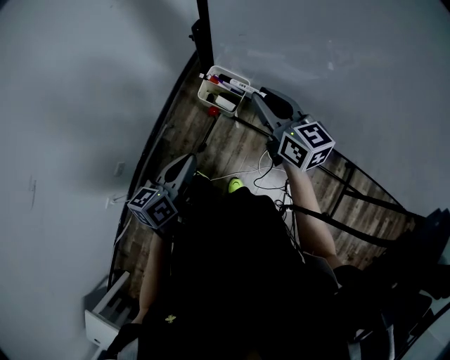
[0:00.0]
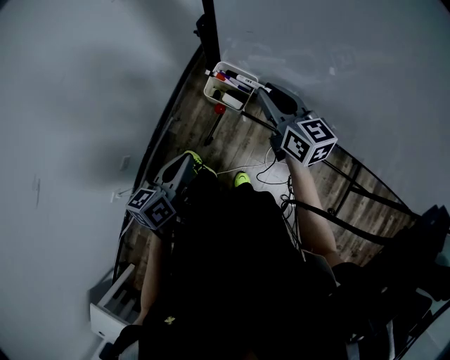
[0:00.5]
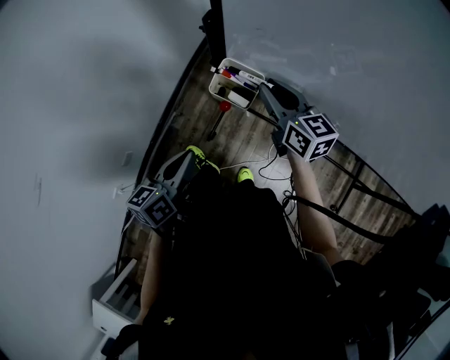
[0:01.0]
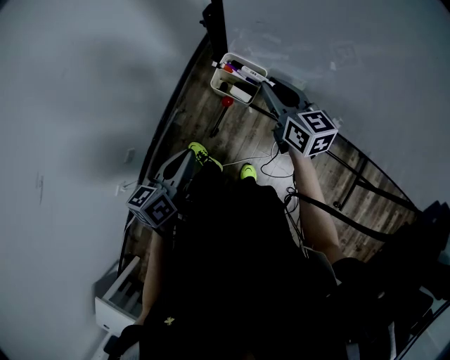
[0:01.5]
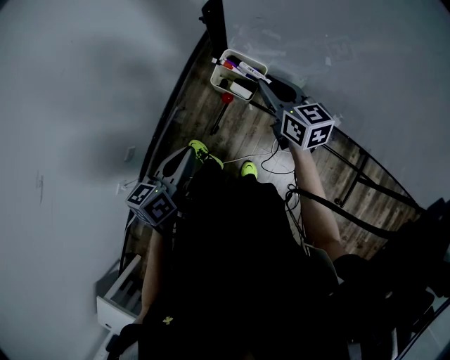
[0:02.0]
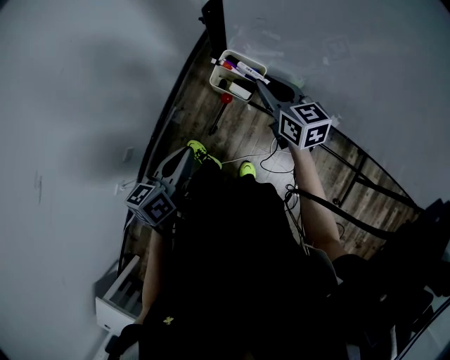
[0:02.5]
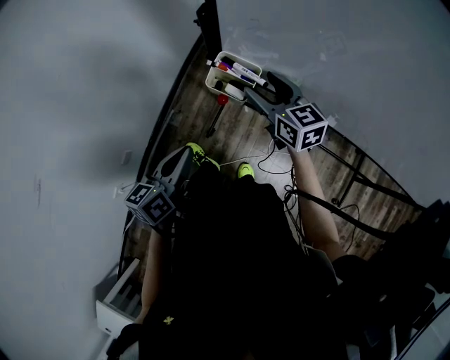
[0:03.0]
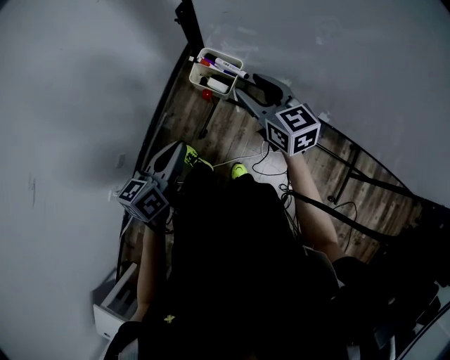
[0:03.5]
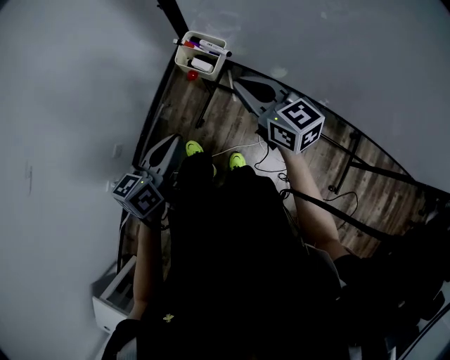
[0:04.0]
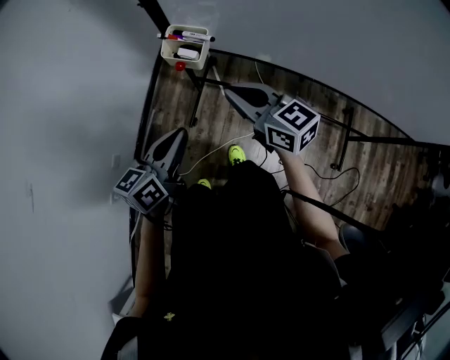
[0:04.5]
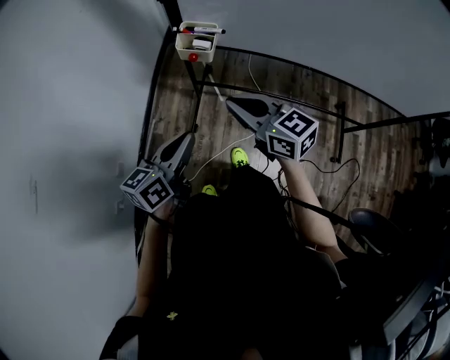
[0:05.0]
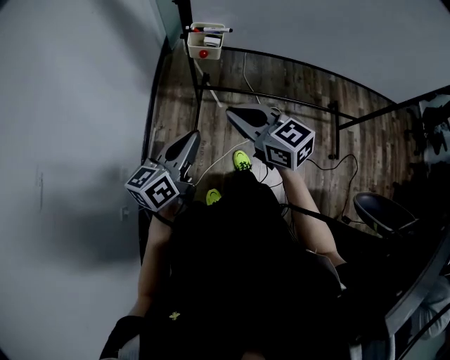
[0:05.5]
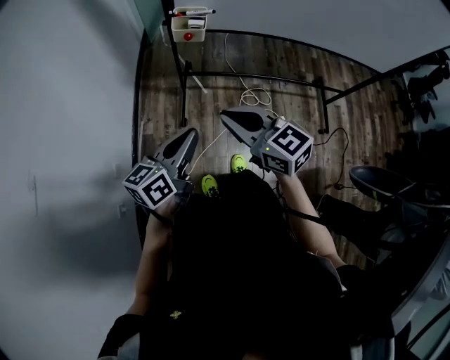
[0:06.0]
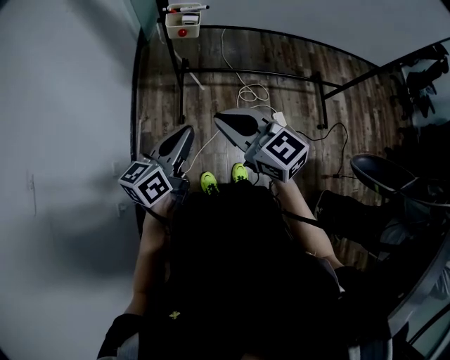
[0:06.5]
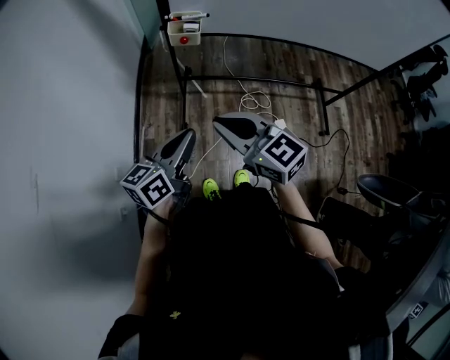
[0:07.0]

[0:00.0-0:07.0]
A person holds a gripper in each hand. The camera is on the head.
0:00.0 to 0:02.0: The right gripper moves downward, roughly 10 cm.
0:02.0 to 0:03.5: The right gripper ends up about 5 cm from where it was, and opens up.
0:03.5 to 0:05.0: The right gripper shifts about 20 cm backward, and closes; the left gripper shifts approximately 10 cm backward.
0:05.0 to 0:07.0: The left gripper travels backward by approximately 10 cm, while the right gripper goes some 20 cm backward and to the left.

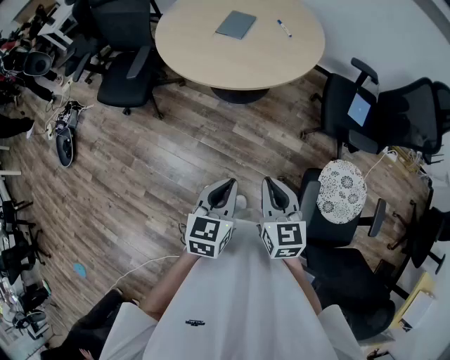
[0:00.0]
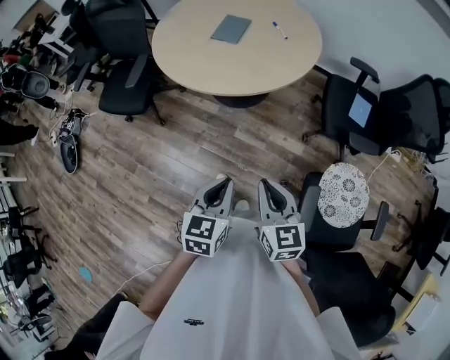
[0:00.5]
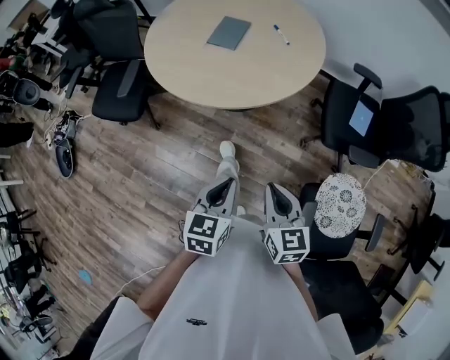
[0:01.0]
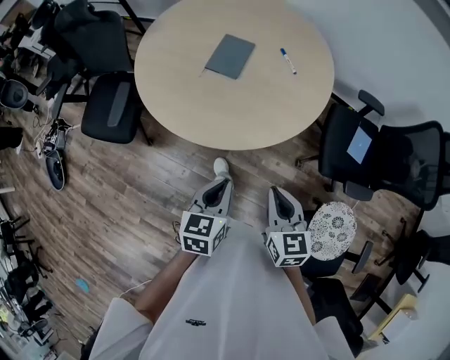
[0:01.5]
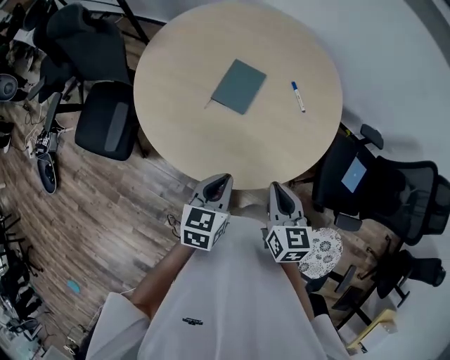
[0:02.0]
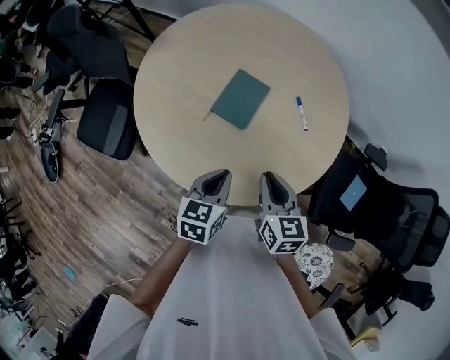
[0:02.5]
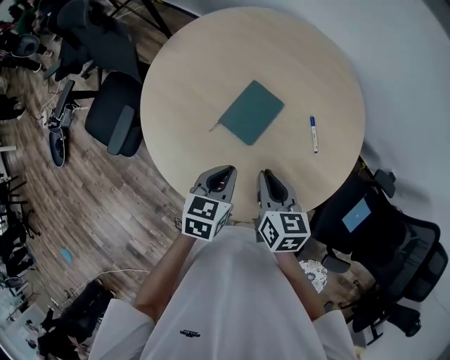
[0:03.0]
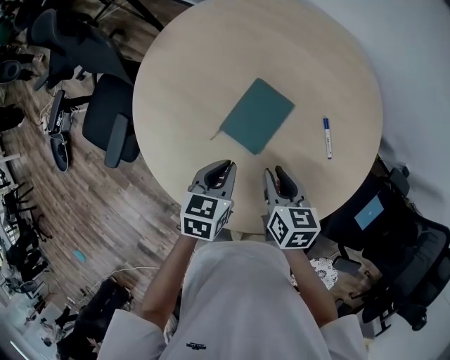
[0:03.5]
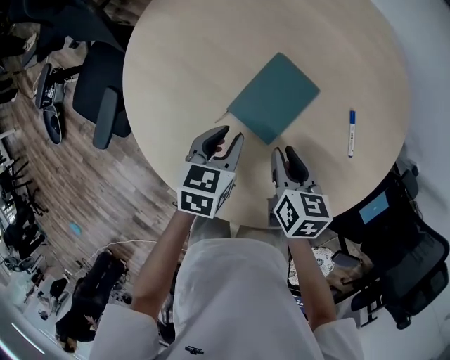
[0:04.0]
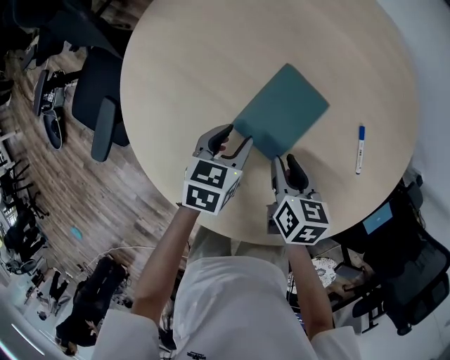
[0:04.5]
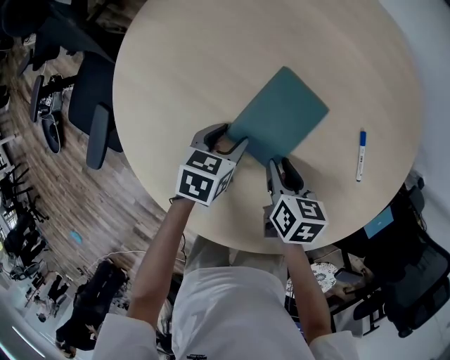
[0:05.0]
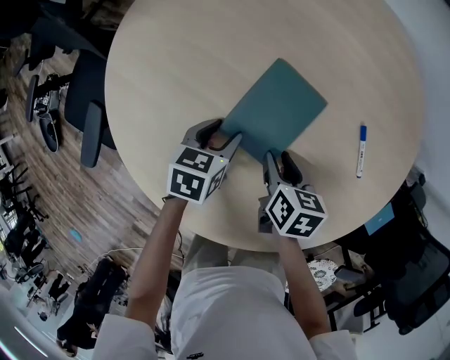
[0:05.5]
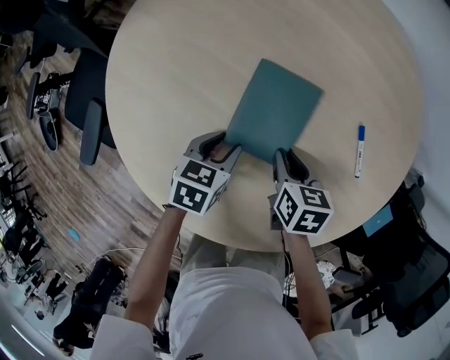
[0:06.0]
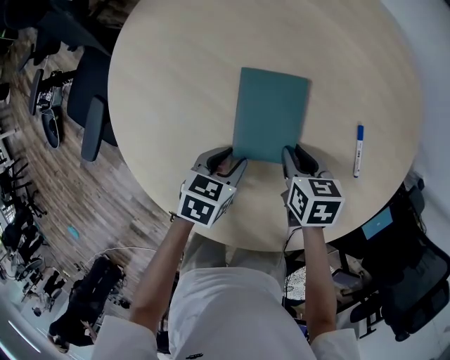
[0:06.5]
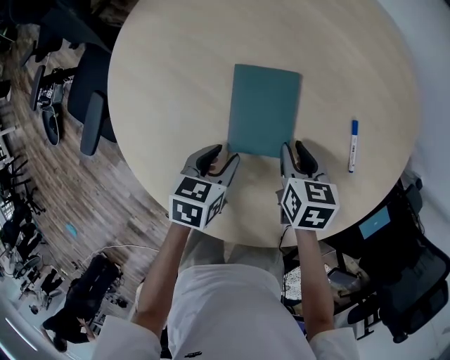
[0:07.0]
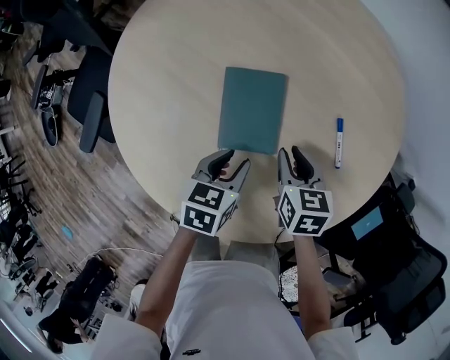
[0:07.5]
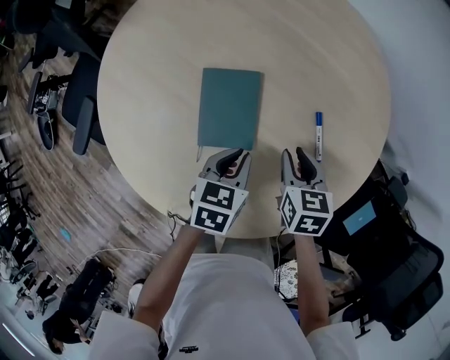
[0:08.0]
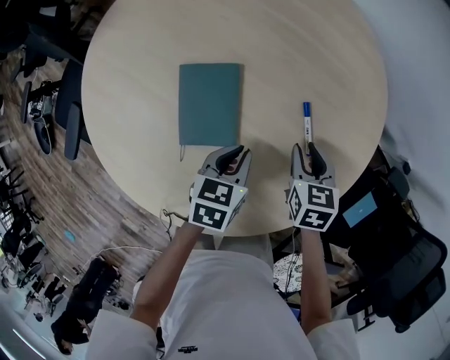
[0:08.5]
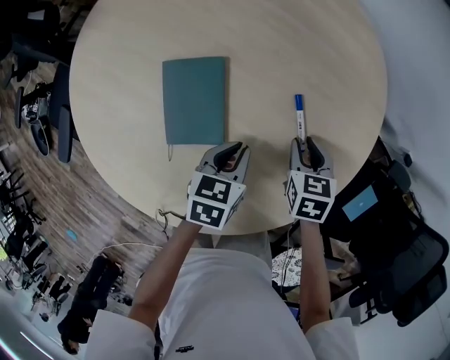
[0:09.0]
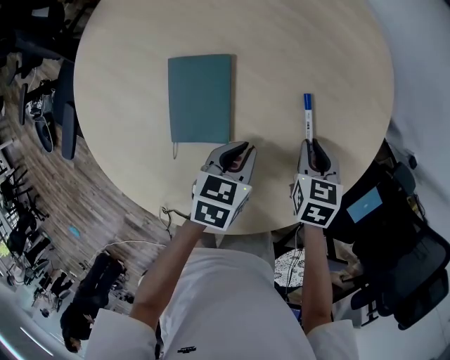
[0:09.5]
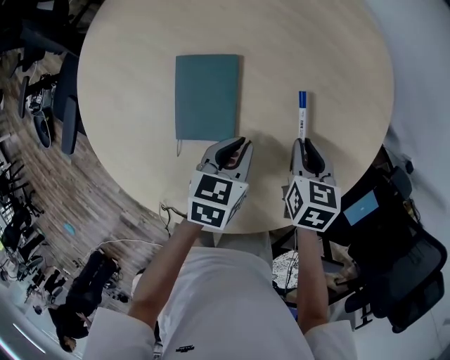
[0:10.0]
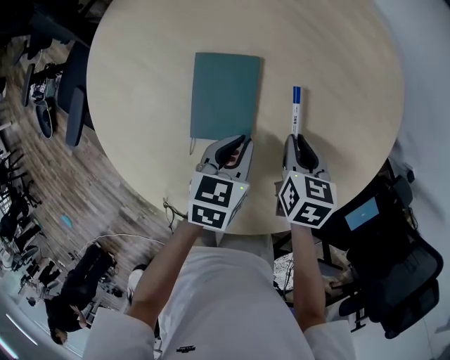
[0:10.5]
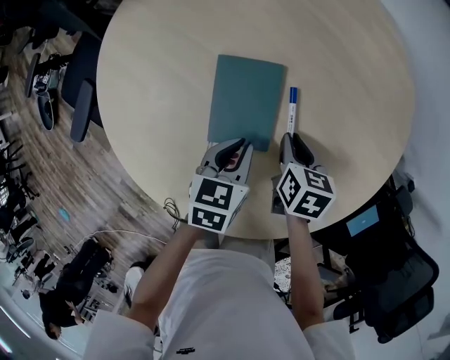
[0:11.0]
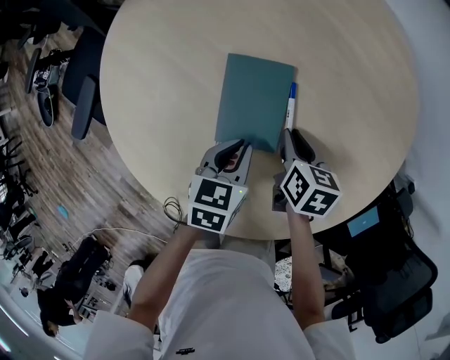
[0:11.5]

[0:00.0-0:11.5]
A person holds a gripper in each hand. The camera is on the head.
0:00.0 to 0:02.0: The pair of grippers is taken forward, approximately 50 cm.
0:02.0 to 0:04.0: The grippers both shift forward and downward by roughly 35 cm. The left gripper opens, while the right gripper turns by some 20 degrees.
0:04.0 to 0:06.0: The grippers both shift downward by about 10 cm.
0:06.0 to 0:07.5: The right gripper shifts approximately 10 cm upward and to the right; the left gripper is displaced to the right and upward by approximately 10 cm.
0:07.5 to 0:09.5: The grippers both shift to the right by approximately 15 cm. The left gripper closes.
0:09.5 to 0:11.5: The grippers both shift to the left by about 15 cm. The right gripper rotates about 20 degrees.

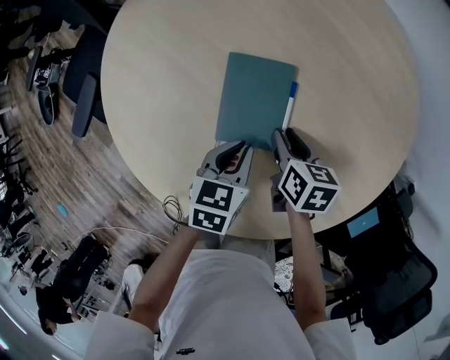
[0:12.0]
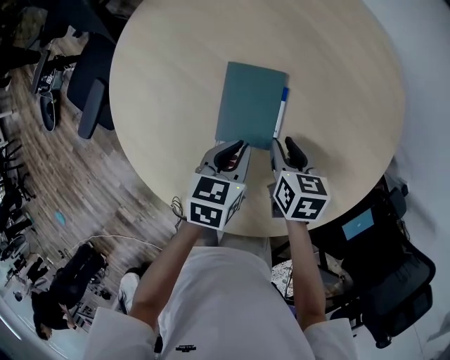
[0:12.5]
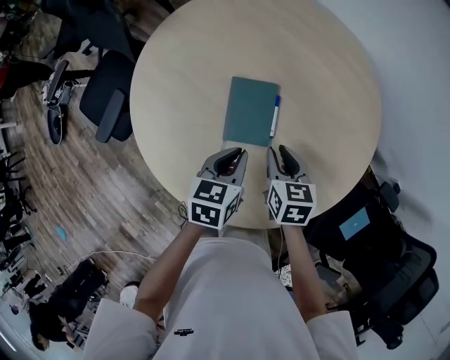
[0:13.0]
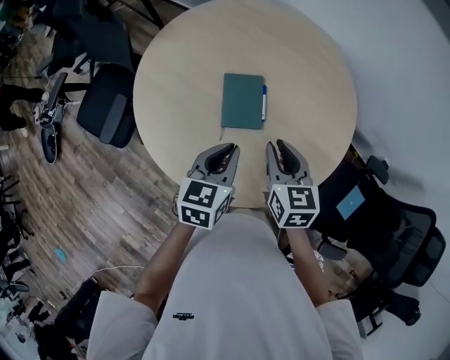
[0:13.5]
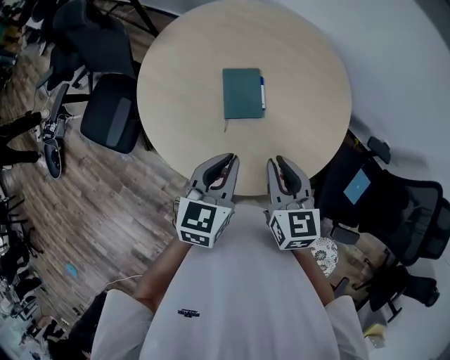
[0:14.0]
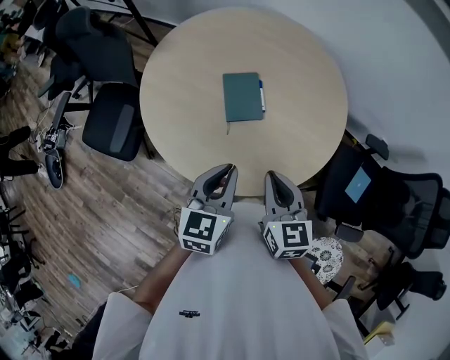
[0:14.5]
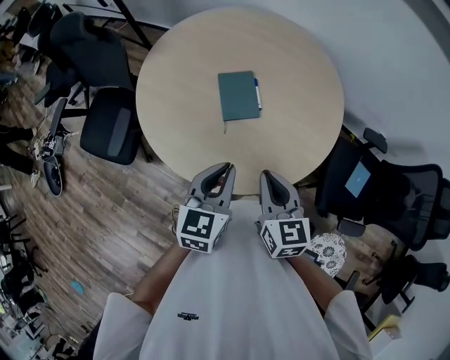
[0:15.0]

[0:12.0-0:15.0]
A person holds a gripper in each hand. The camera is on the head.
0:12.0 to 0:13.5: The two grippers go roughly 30 cm upward and backward. The right gripper turns by some 30 degrees.
0:13.5 to 0:15.0: The right gripper goes roughly 15 cm backward, while the left gripper shifts roughly 15 cm backward and upward.

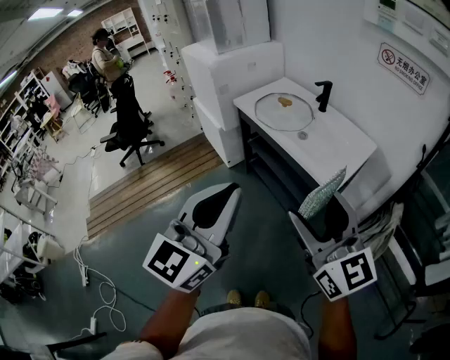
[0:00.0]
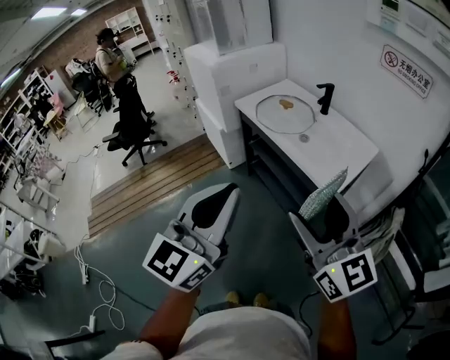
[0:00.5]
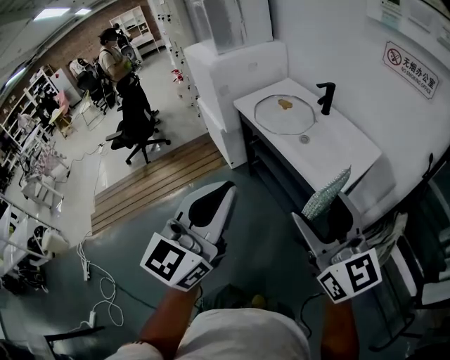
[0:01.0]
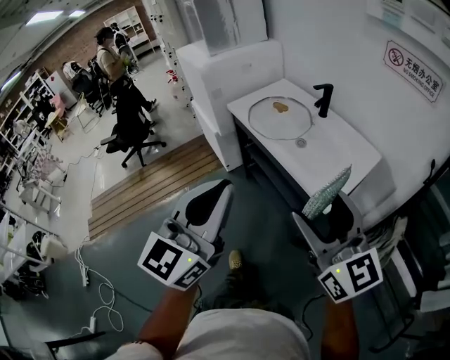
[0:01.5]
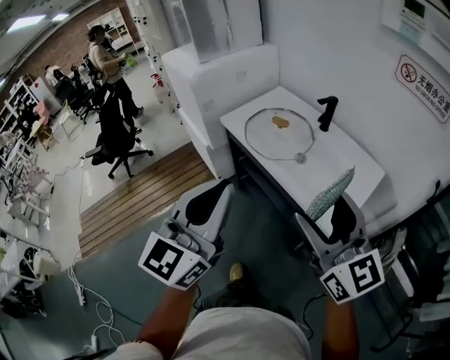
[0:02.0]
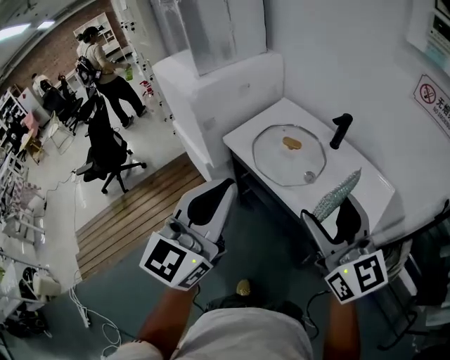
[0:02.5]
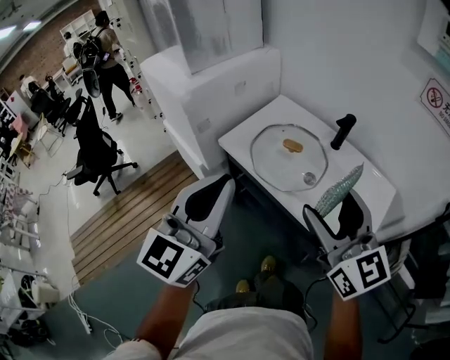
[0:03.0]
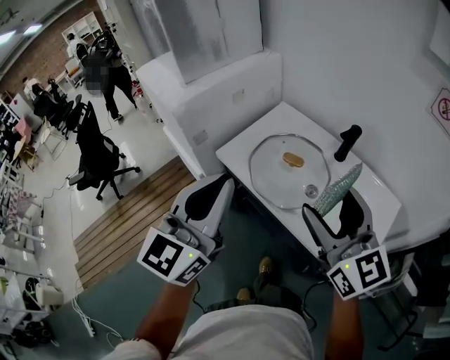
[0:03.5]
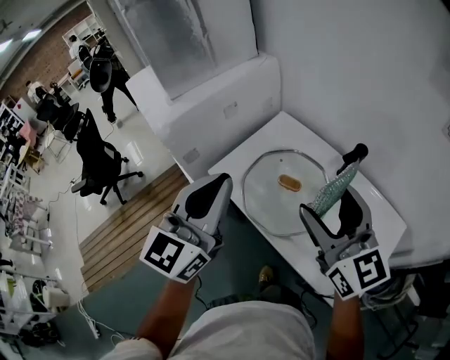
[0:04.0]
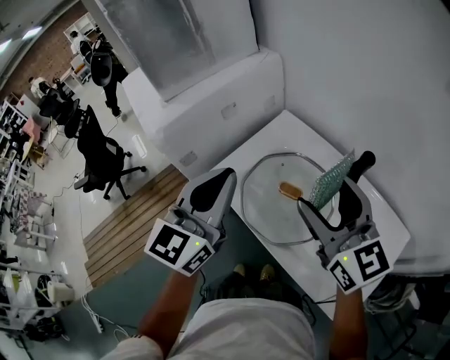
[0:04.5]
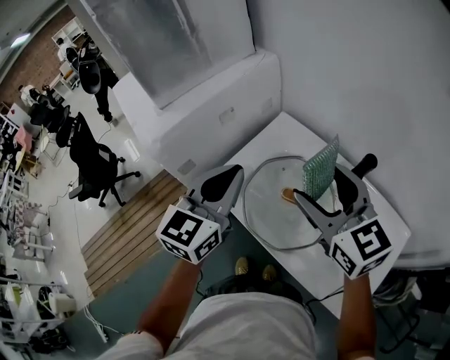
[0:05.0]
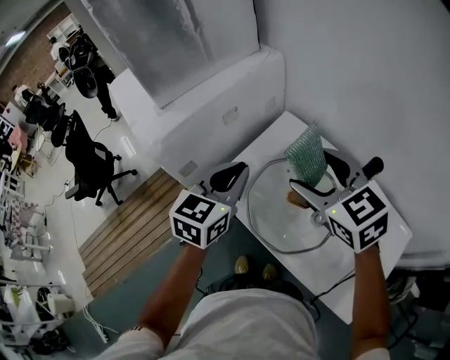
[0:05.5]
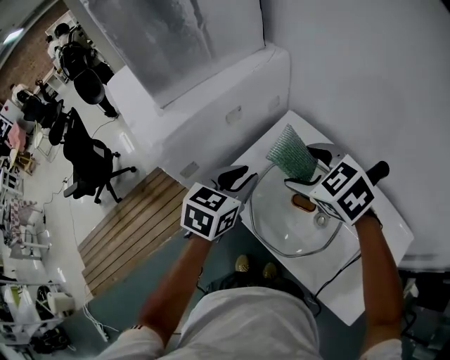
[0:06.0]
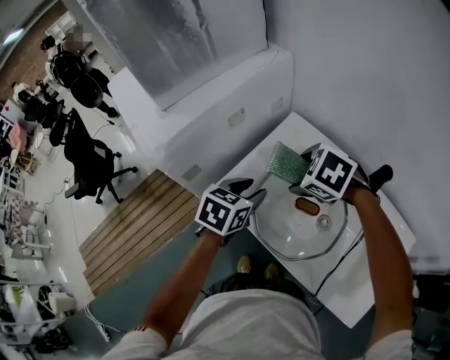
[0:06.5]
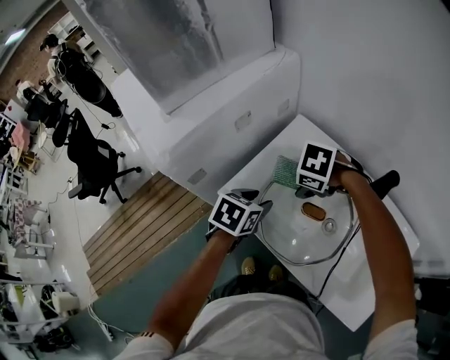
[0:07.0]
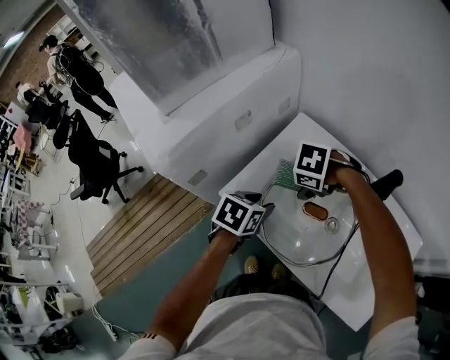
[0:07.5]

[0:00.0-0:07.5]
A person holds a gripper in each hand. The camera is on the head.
0:00.0 to 0:02.0: The grippers both shift forward by some 20 cm.
0:02.0 to 0:04.0: Both grippers travel together forward, approximately 35 cm.
0:04.0 to 0:05.5: The right gripper is displaced forward by approximately 15 cm, and rotates some 30 degrees; the left gripper heads forward and downward, covering some 20 cm, and rotates about 20 degrees.
0:05.5 to 0:07.5: The two grippers go roughly 20 cm downward. The left gripper tips its fingers downward by roughly 30 degrees, and opens its fingers; the right gripper tips its fingers downward by roughly 50 degrees.
